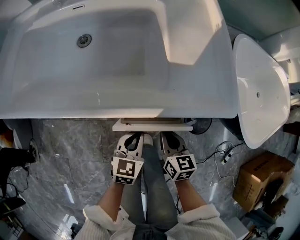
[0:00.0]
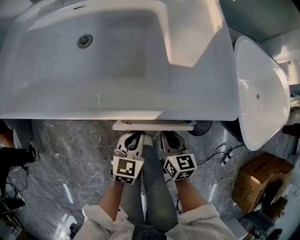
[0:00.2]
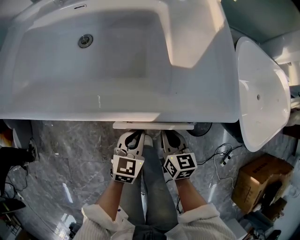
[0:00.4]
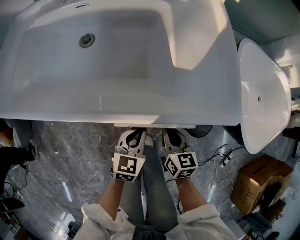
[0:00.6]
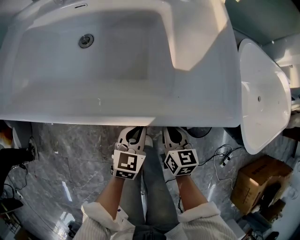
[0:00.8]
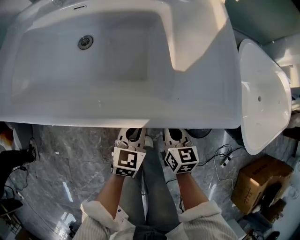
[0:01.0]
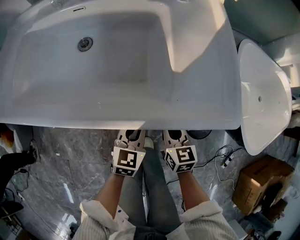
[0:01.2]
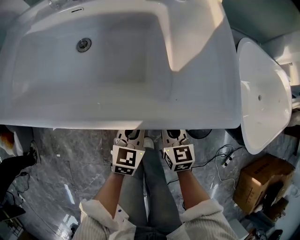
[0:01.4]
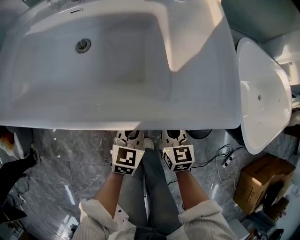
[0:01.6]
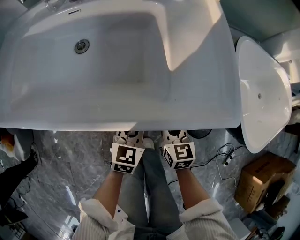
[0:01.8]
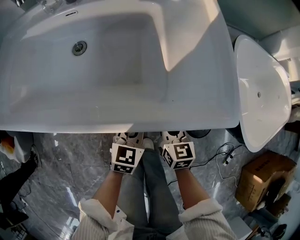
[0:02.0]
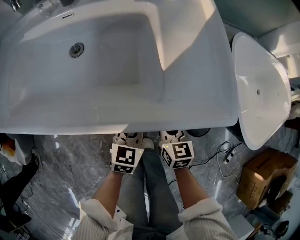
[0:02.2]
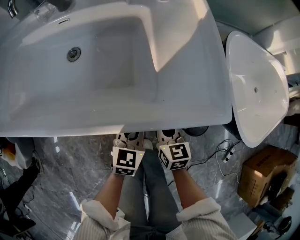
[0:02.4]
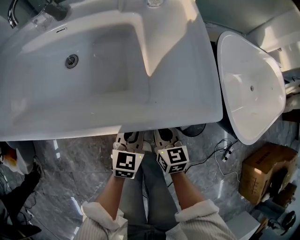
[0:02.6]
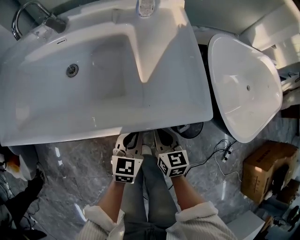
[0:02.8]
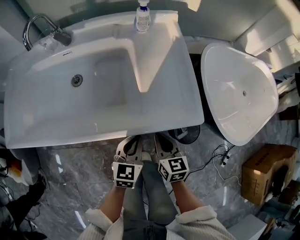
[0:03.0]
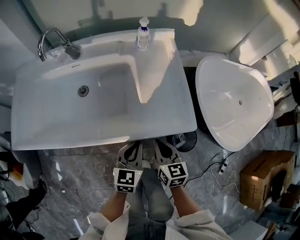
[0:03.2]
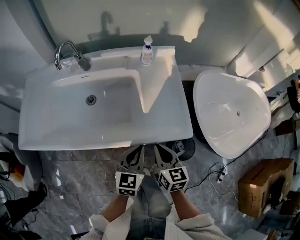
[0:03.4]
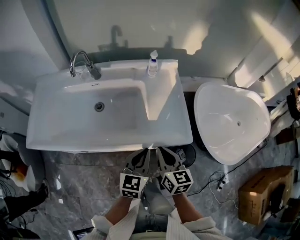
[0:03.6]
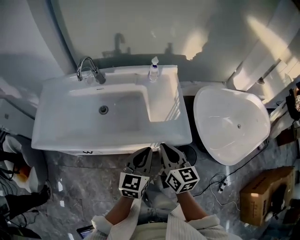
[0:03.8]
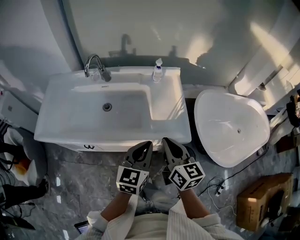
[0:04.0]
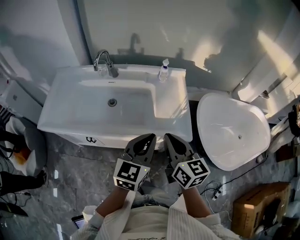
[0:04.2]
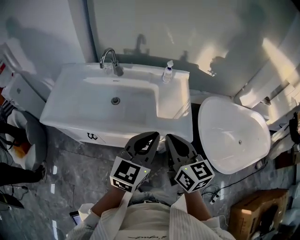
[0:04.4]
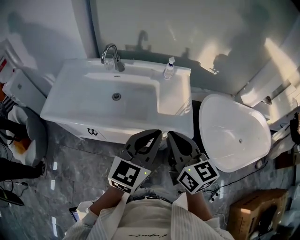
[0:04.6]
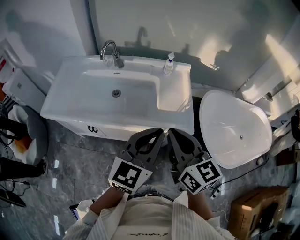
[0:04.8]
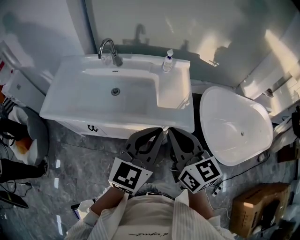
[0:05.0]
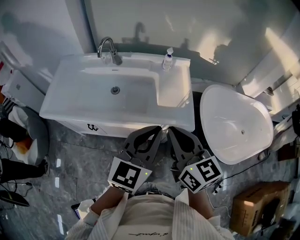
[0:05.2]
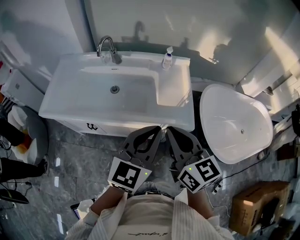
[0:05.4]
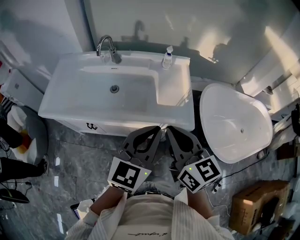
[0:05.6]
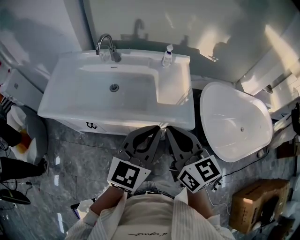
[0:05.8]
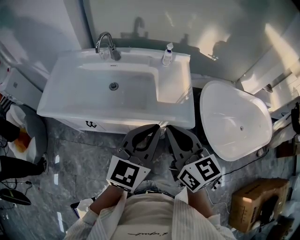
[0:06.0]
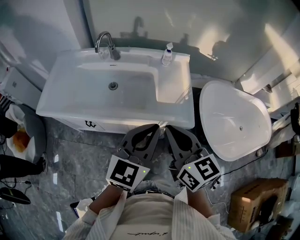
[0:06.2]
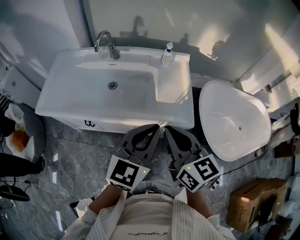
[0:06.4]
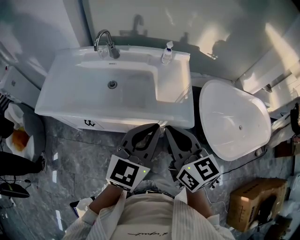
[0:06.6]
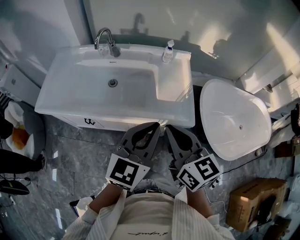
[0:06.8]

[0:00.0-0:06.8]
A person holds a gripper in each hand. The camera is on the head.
0:00.0 to 0:01.4: Both grippers move forward, some 5 cm.
0:01.4 to 0:02.8: The right gripper shifts by roughly 5 cm, while the left gripper is displaced upward by approximately 5 cm.
0:02.8 to 0:04.0: The grippers both shift upward by approximately 30 cm. The right gripper swivels approximately 20 degrees.
0:04.0 to 0:05.4: The two grippers go some 10 cm upward and backward.
0:05.4 to 0:06.8: The grippers stay close to where they were, moving slightly.

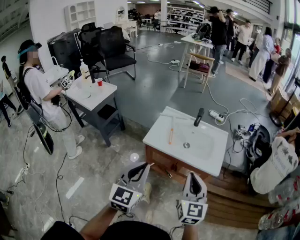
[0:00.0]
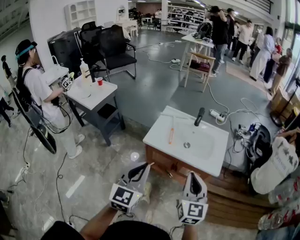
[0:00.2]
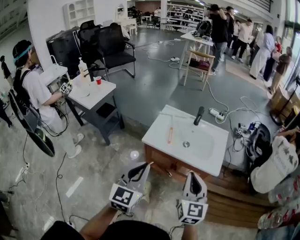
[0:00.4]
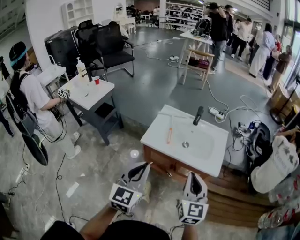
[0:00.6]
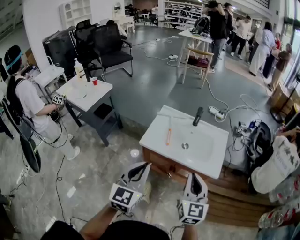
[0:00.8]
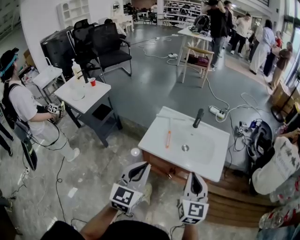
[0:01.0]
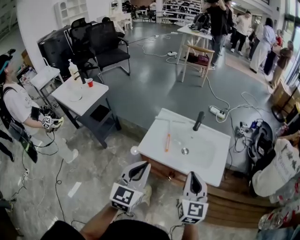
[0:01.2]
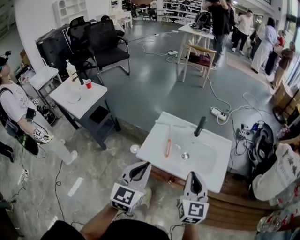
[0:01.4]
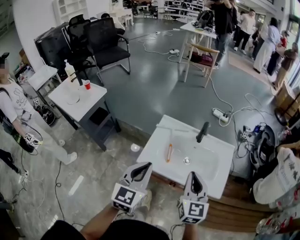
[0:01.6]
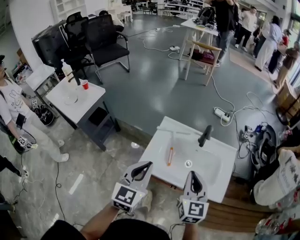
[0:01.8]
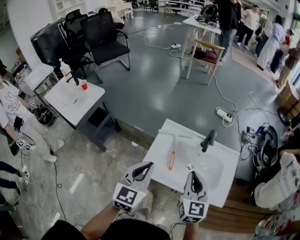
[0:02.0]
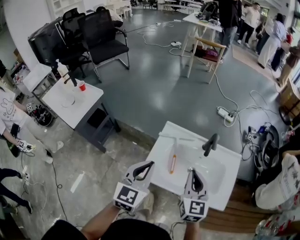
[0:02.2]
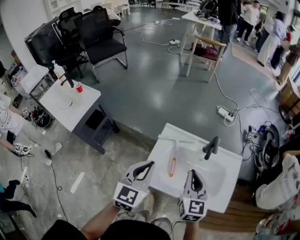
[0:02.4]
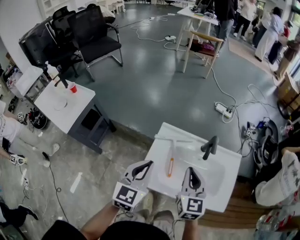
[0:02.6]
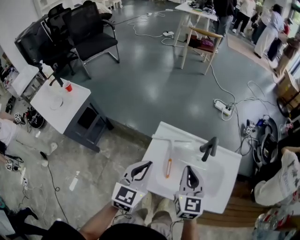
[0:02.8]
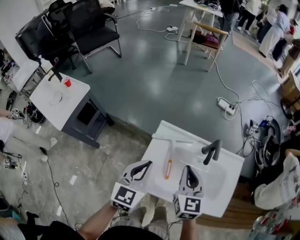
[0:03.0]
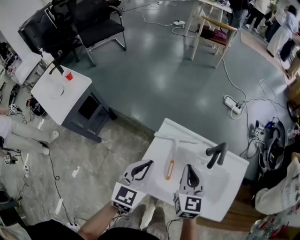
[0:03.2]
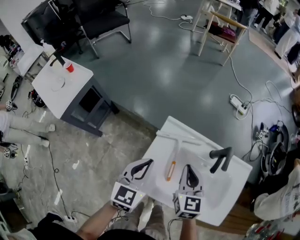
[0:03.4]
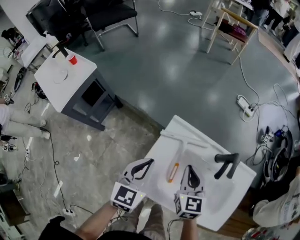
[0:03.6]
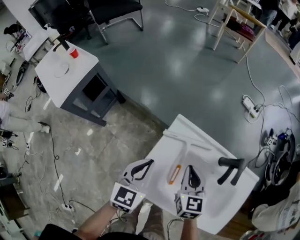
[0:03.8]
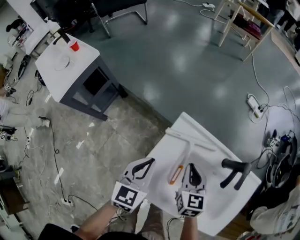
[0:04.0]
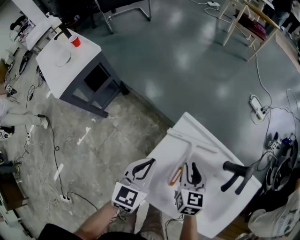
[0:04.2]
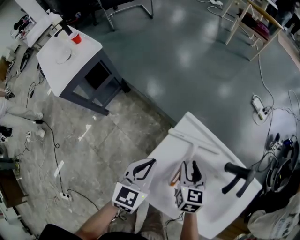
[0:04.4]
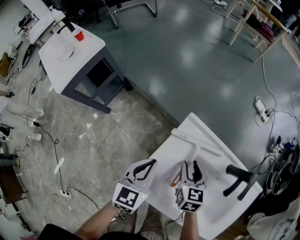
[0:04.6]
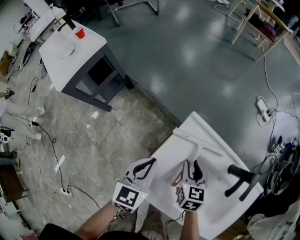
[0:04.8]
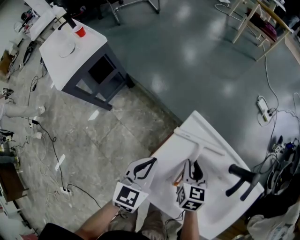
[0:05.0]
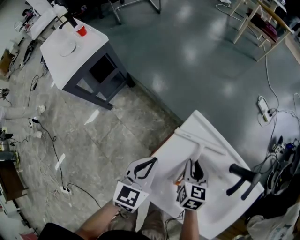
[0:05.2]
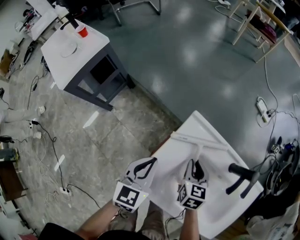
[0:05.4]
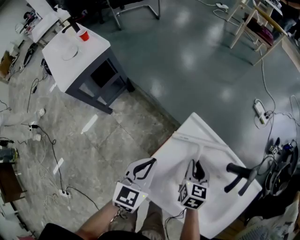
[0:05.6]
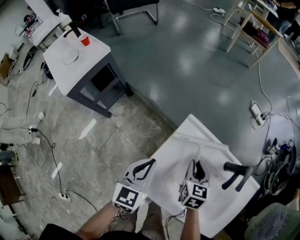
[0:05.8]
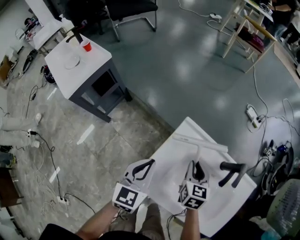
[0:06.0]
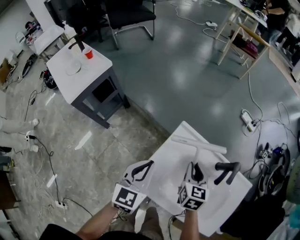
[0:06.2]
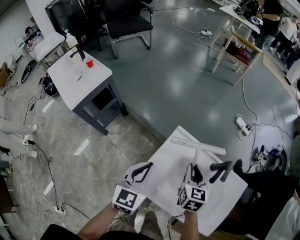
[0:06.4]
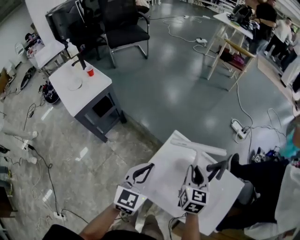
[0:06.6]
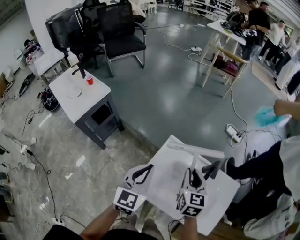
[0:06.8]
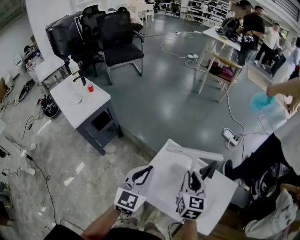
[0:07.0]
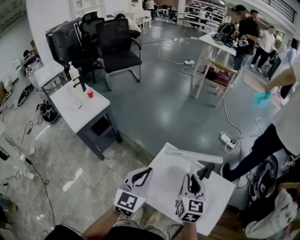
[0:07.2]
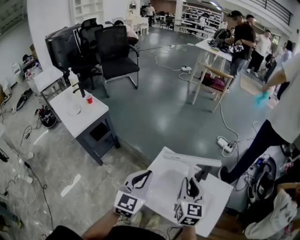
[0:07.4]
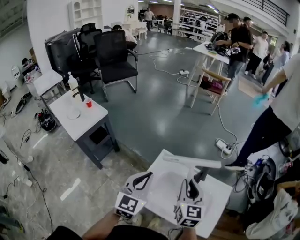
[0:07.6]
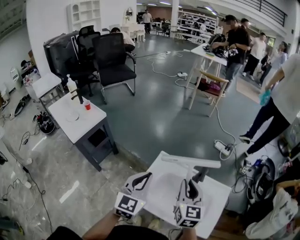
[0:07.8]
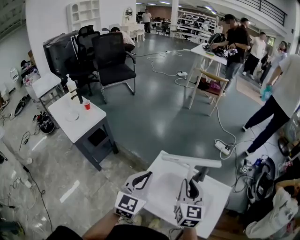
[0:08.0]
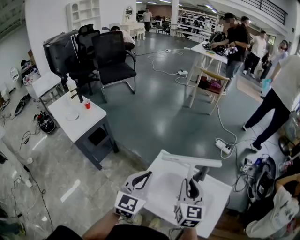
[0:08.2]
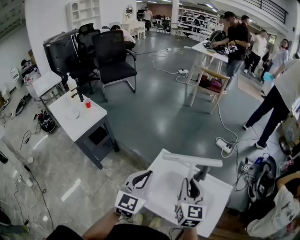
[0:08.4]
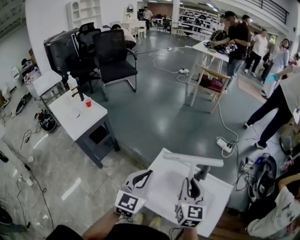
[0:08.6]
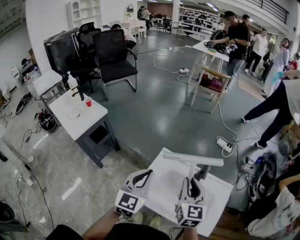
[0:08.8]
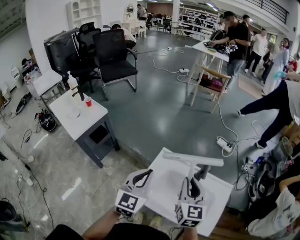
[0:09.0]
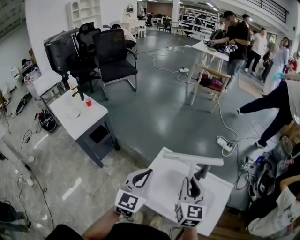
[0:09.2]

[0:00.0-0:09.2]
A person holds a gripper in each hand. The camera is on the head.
0:00.0 to 0:01.6: The grippers both shift forward by about 25 cm.
0:01.6 to 0:03.0: The two grippers go roughly 25 cm forward and downward.
0:03.0 to 0:04.6: Both grippers move downward, some 20 cm. The right gripper changes its angle by approximately 30 degrees, and opens its fingers. The left gripper changes its angle by some 20 degrees.
0:04.6 to 0:06.2: Both grippers travel together upward, roughly 10 cm. The right gripper closes up.
0:06.2 to 0:07.6: The left gripper goes approximately 20 cm upward. The right gripper goes roughly 25 cm upward and backward, and turns by approximately 20 degrees.
0:07.6 to 0:09.2: Both grippers stay put.

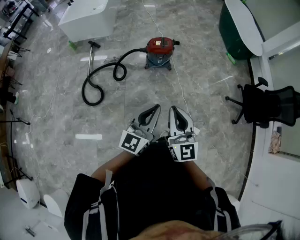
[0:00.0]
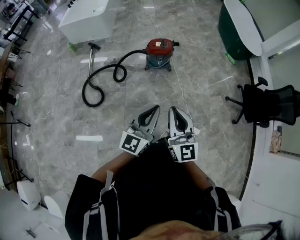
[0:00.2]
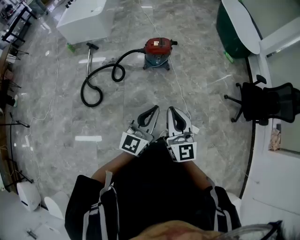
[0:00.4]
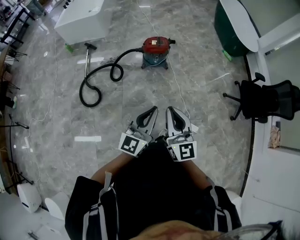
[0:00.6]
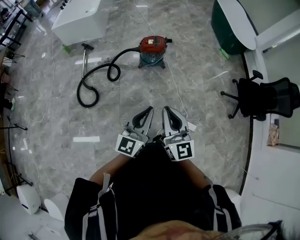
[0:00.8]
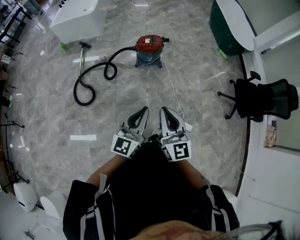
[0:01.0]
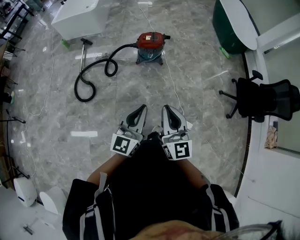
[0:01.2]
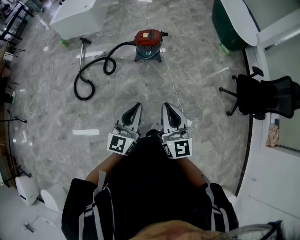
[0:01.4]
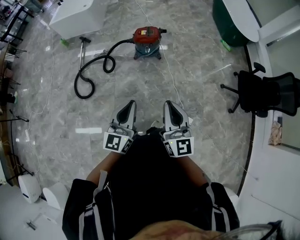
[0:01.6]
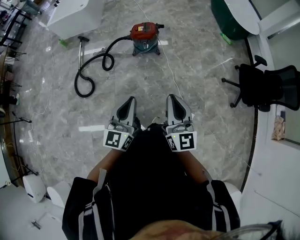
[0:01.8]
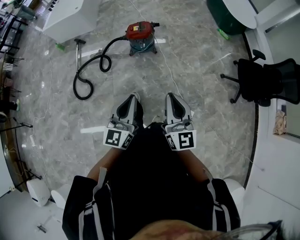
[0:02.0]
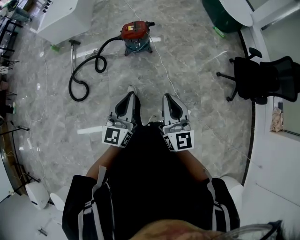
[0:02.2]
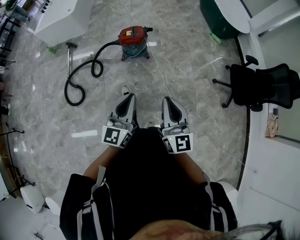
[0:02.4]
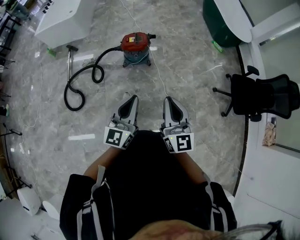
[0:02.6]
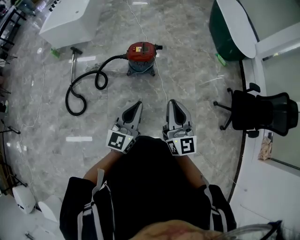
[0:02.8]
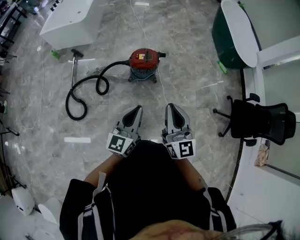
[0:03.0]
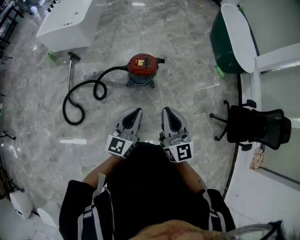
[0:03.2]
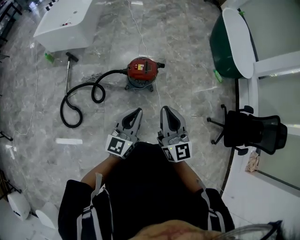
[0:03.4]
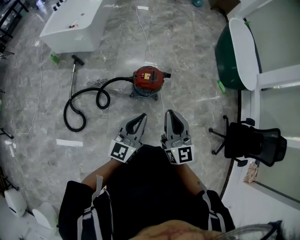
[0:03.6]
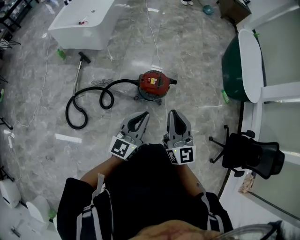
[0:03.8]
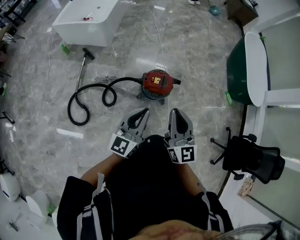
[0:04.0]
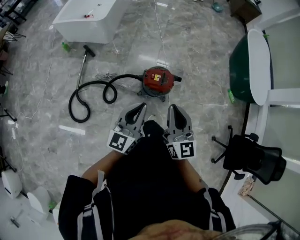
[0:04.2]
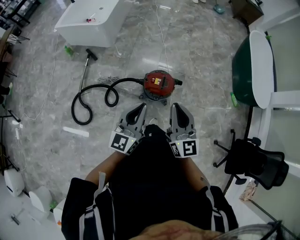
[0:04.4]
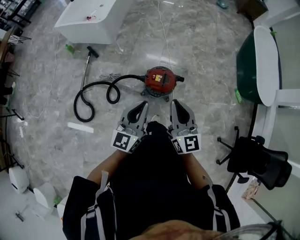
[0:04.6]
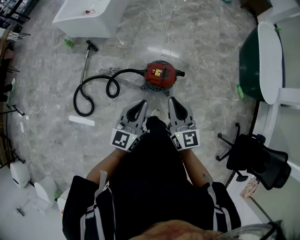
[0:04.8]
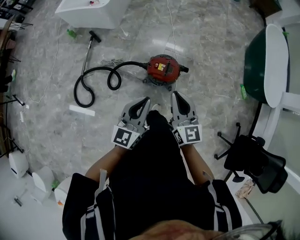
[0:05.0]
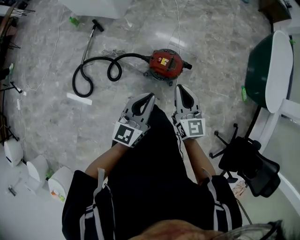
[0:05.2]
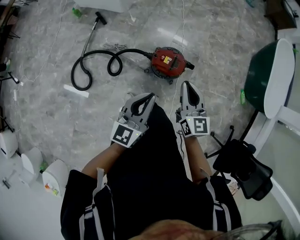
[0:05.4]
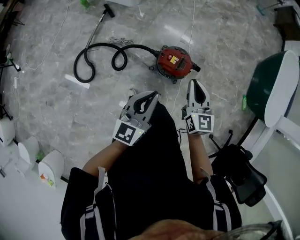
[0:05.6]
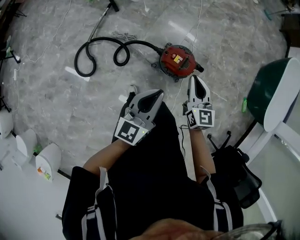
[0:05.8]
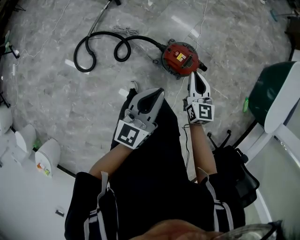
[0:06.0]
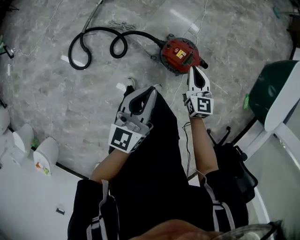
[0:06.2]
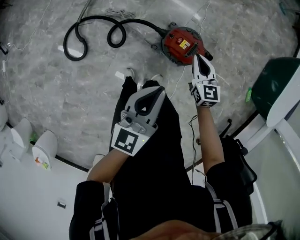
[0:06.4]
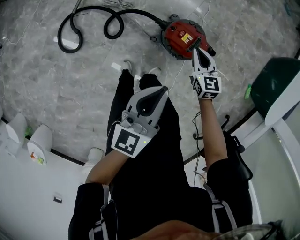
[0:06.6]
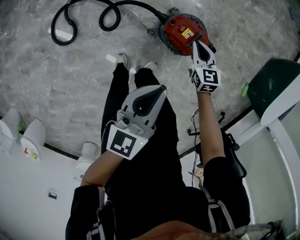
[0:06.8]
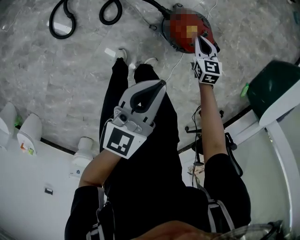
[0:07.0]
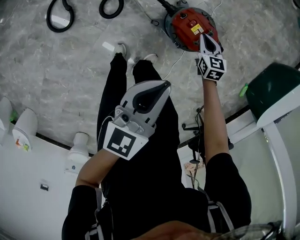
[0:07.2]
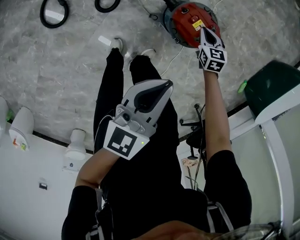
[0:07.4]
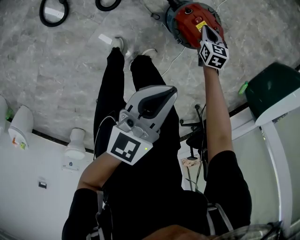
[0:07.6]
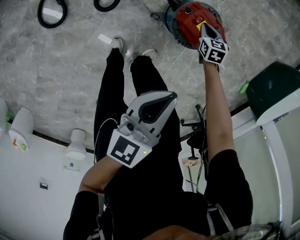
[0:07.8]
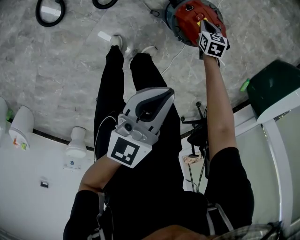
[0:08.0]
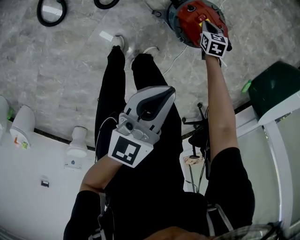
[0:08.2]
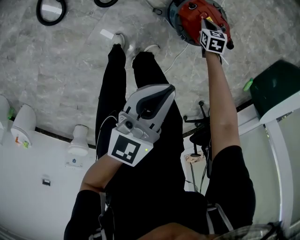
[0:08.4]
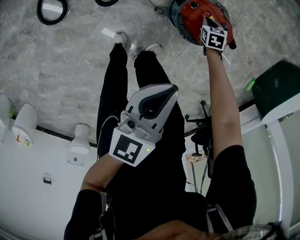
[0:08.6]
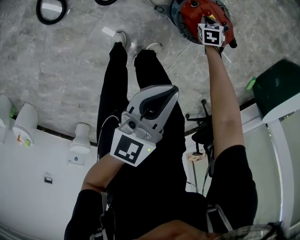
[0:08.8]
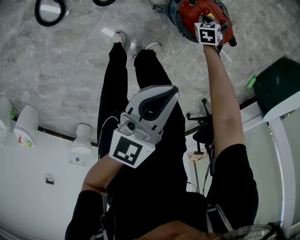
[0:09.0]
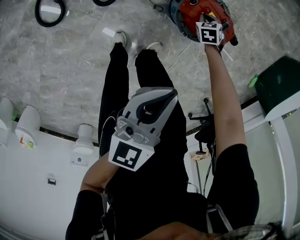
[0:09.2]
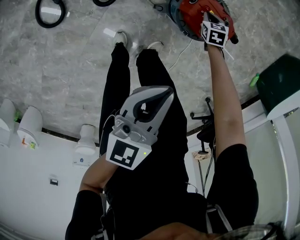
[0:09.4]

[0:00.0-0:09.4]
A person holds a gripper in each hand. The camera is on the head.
0:00.0 to 0:01.6: The right gripper travels to the right by roughly 15 cm, while the left gripper goes approximately 5 cm to the right.
0:01.6 to 0:03.2: Both grippers move forward, about 30 cm.
0:03.2 to 0:04.8: The two grippers go some 25 cm forward.
0:04.8 to 0:06.2: The right gripper is displaced downward and forward by roughly 30 cm, and swivels about 20 degrees. Meanwhile the left gripper shifts about 15 cm forward, to the left and downward, and swivels roughly 20 degrees.
0:06.2 to 0:07.8: The right gripper shifts roughly 40 cm downward, and tilts its fingers about 30 degrees downward. Meanwhile the left gripper shifts approximately 20 cm downward.
0:07.8 to 0:09.4: The right gripper moves downward, approximately 5 cm.
